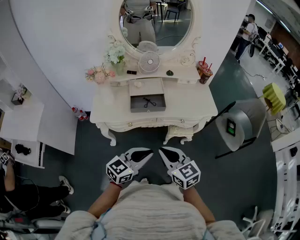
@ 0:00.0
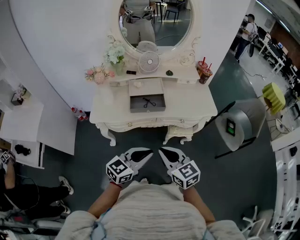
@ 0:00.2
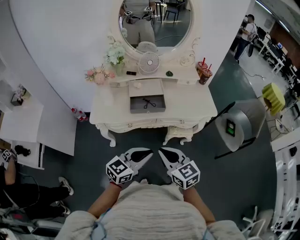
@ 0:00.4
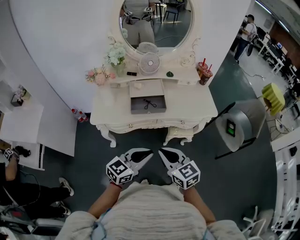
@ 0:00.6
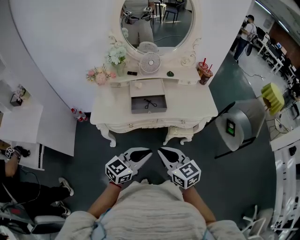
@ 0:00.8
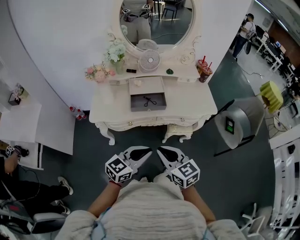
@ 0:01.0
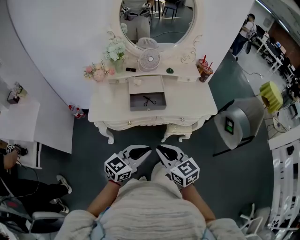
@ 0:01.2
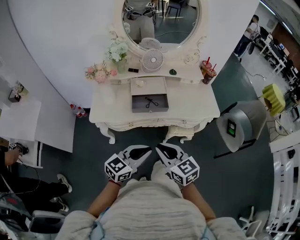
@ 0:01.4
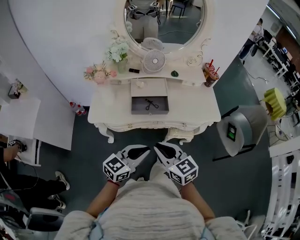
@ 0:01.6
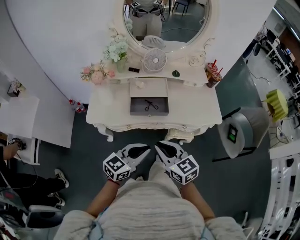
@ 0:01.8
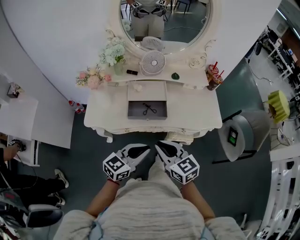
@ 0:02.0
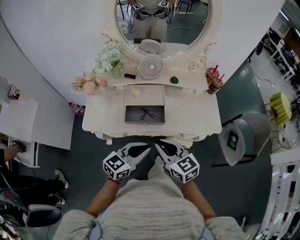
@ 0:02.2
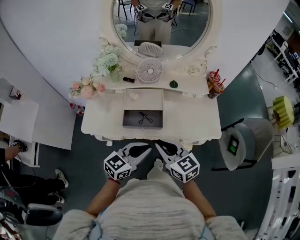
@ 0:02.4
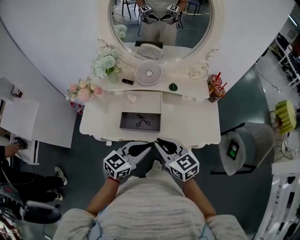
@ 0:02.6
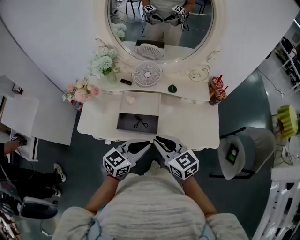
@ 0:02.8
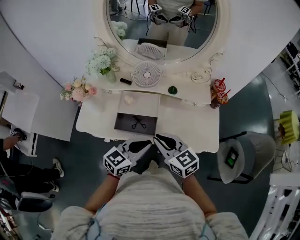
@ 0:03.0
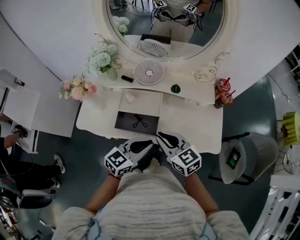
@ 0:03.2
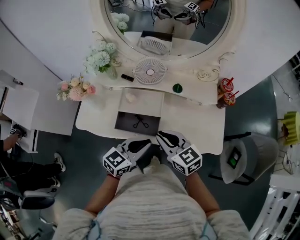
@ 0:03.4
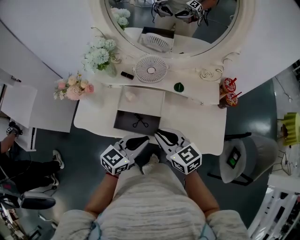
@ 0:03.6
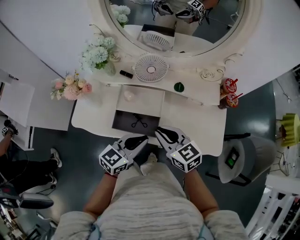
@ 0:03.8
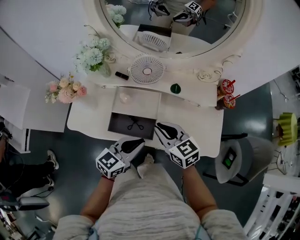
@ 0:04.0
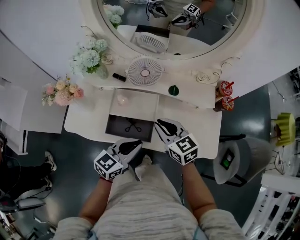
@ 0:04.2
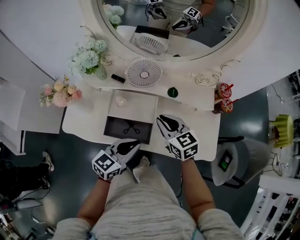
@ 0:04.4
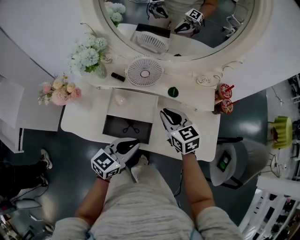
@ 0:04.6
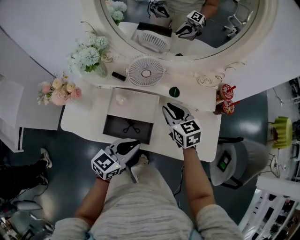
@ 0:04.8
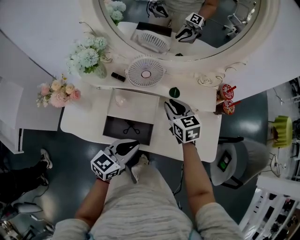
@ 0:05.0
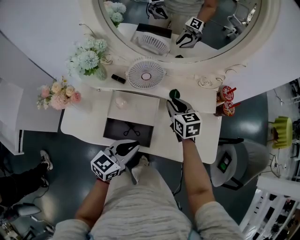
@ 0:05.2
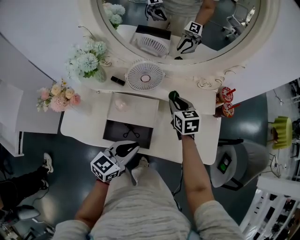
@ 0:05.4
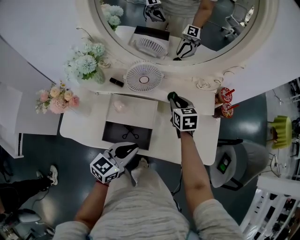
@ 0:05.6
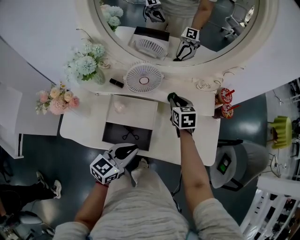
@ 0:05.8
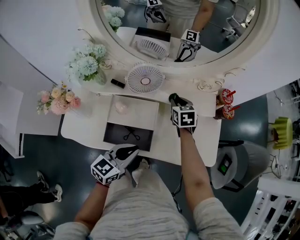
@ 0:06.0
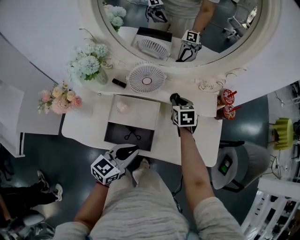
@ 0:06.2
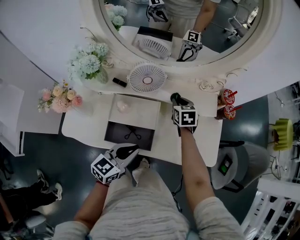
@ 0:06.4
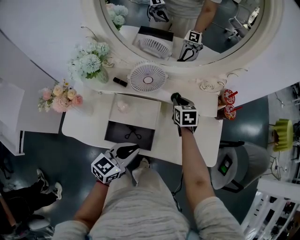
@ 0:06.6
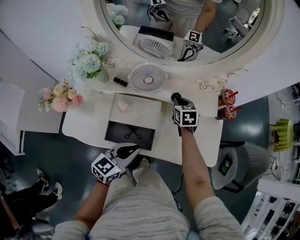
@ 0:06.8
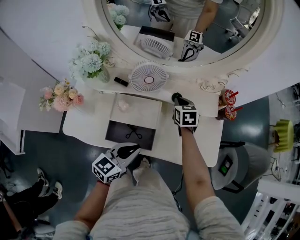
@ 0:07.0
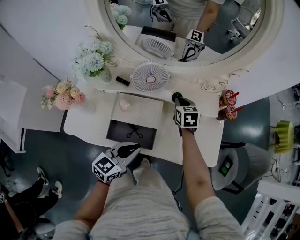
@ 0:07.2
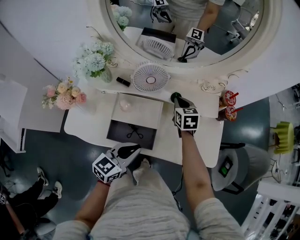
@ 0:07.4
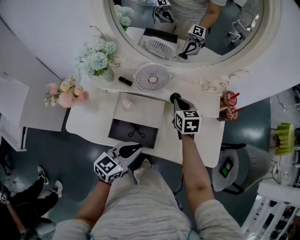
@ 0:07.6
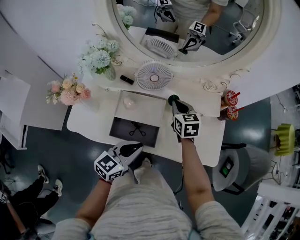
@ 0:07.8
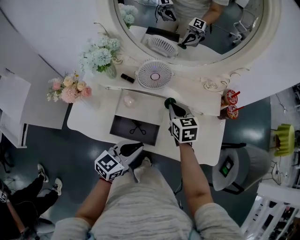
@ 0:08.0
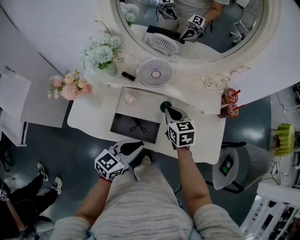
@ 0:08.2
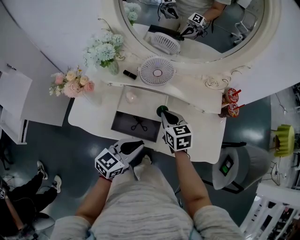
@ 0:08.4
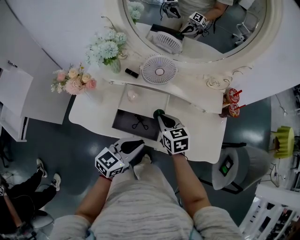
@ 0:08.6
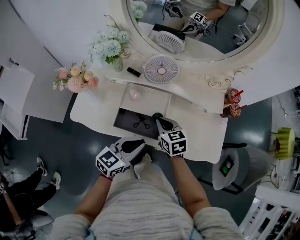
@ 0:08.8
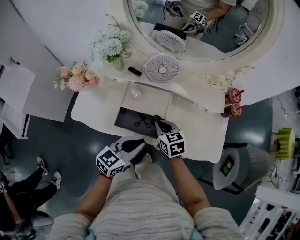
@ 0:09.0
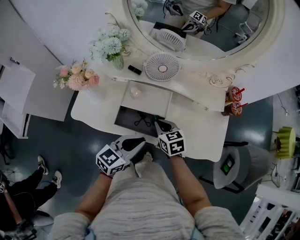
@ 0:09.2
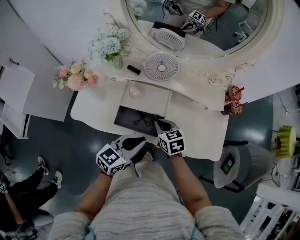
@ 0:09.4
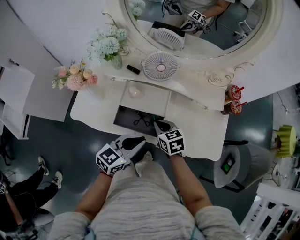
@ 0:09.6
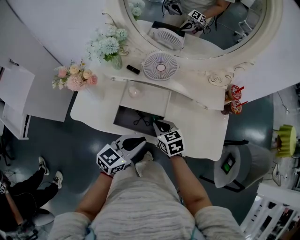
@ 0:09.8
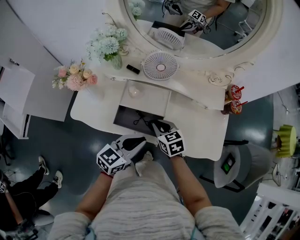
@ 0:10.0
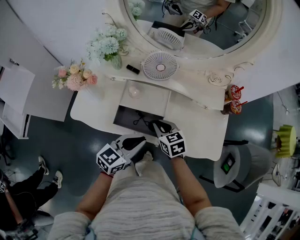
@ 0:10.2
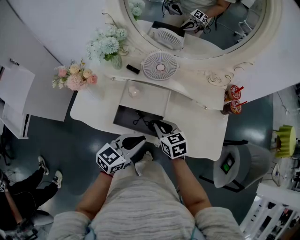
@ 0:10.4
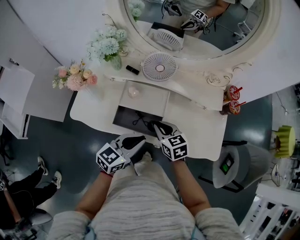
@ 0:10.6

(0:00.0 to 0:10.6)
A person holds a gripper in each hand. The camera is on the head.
0:00.0 - 0:01.6: Both grippers travel together forward, roughly 5 cm.
0:01.6 - 0:03.0: The grippers both shift forward and to the right by roughly 25 cm.
0:03.0 - 0:04.6: The right gripper shifts about 20 cm forward; the left gripper heads forward and downward, covering about 10 cm.
0:04.6 - 0:06.0: The right gripper travels forward and downward by about 15 cm, and turns by some 30 degrees.
0:06.0 - 0:07.6: The right gripper shifts by about 5 cm.
0:07.6 - 0:09.0: The right gripper shifts some 20 cm backward and to the left.
0:09.0 - 0:10.6: The grippers move only a little.

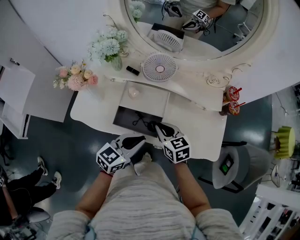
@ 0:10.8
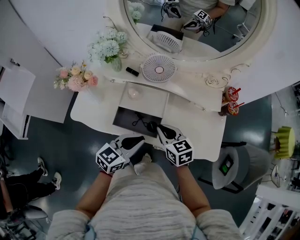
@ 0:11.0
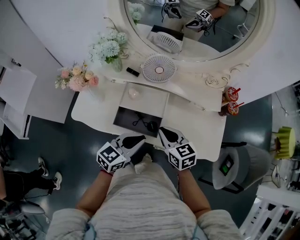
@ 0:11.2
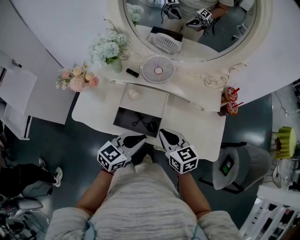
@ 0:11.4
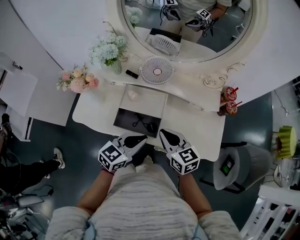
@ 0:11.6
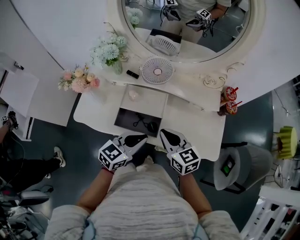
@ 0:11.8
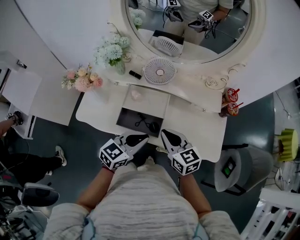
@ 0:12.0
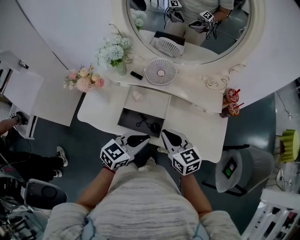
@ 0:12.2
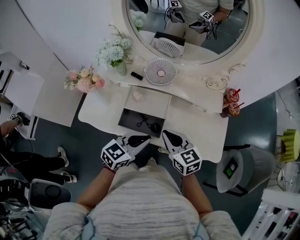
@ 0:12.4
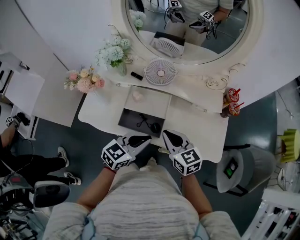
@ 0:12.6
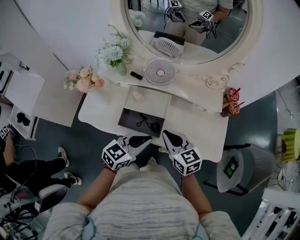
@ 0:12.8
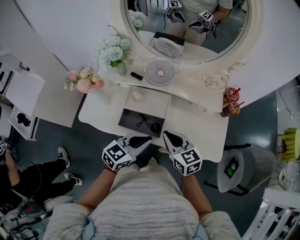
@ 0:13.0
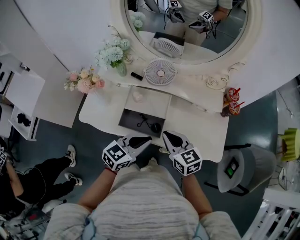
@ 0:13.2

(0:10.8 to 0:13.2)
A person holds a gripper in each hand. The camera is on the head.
0:10.8 - 0:12.0: The right gripper is displaced upward by some 10 cm.
0:12.0 - 0:13.2: Both grippers stay about where they are.

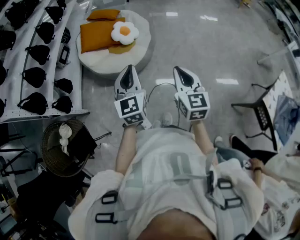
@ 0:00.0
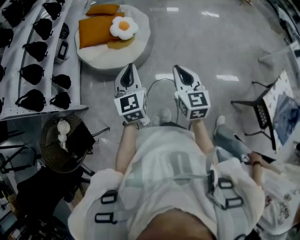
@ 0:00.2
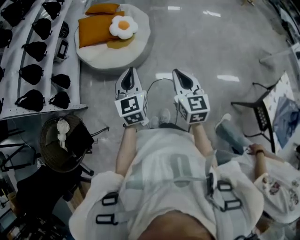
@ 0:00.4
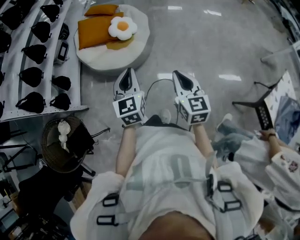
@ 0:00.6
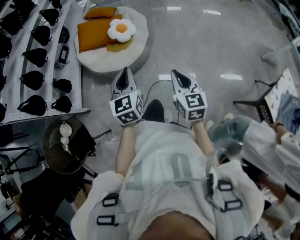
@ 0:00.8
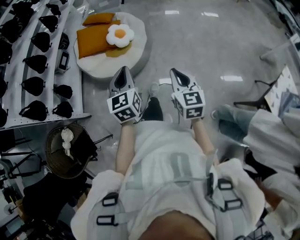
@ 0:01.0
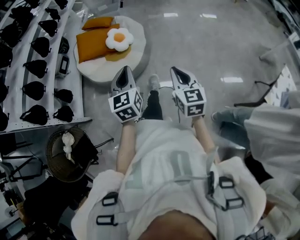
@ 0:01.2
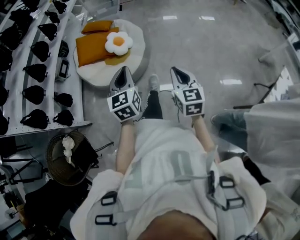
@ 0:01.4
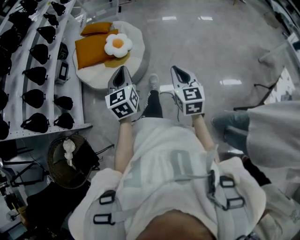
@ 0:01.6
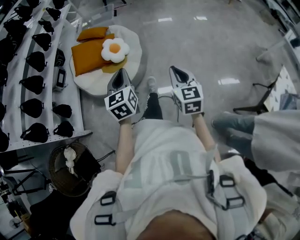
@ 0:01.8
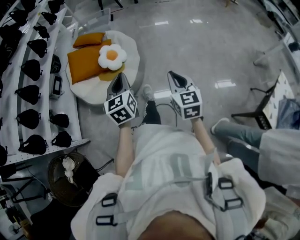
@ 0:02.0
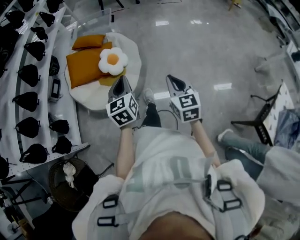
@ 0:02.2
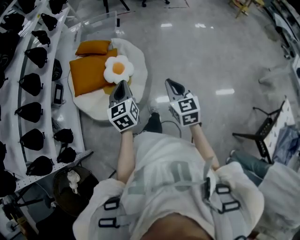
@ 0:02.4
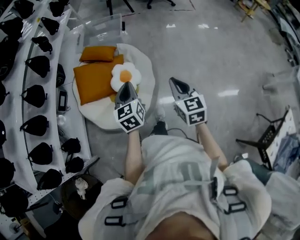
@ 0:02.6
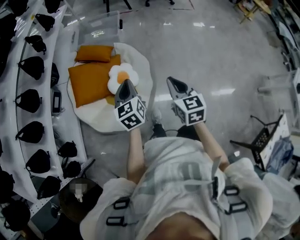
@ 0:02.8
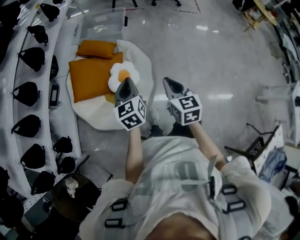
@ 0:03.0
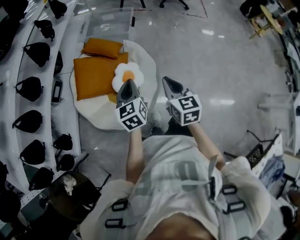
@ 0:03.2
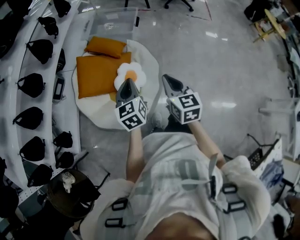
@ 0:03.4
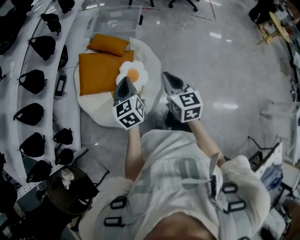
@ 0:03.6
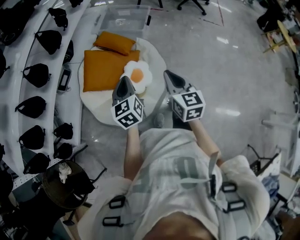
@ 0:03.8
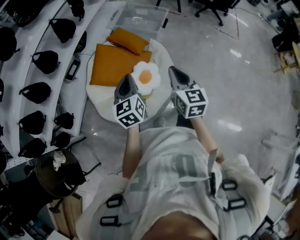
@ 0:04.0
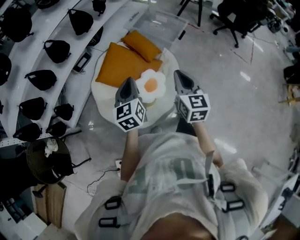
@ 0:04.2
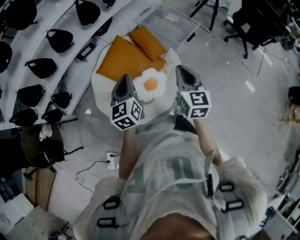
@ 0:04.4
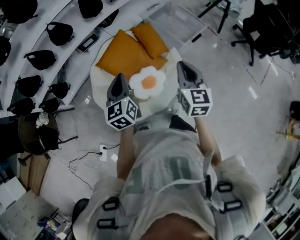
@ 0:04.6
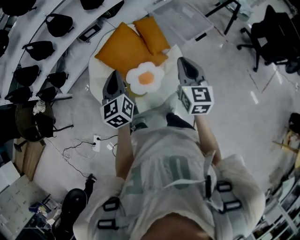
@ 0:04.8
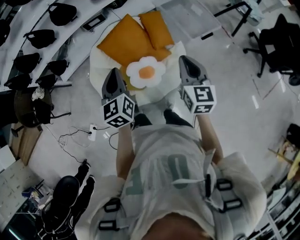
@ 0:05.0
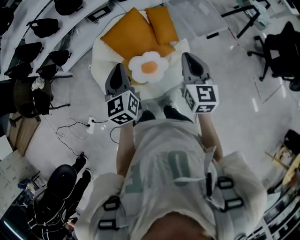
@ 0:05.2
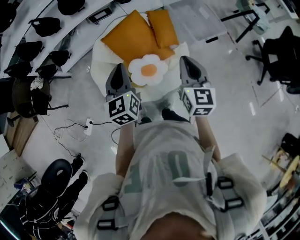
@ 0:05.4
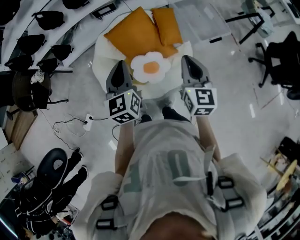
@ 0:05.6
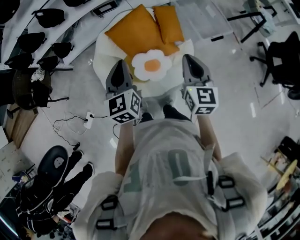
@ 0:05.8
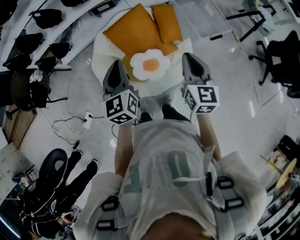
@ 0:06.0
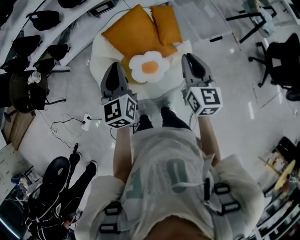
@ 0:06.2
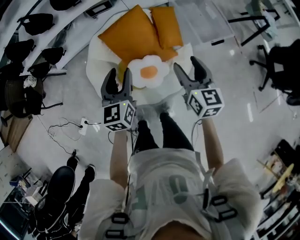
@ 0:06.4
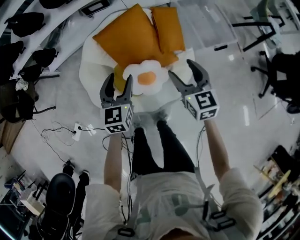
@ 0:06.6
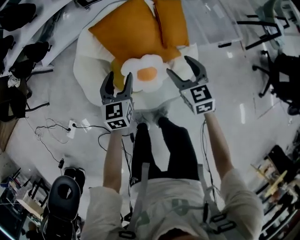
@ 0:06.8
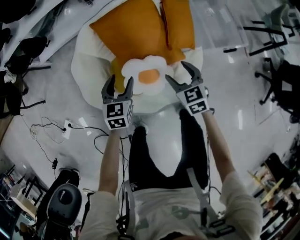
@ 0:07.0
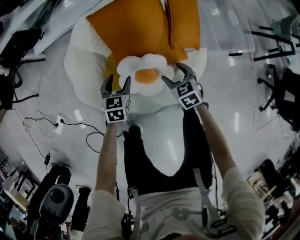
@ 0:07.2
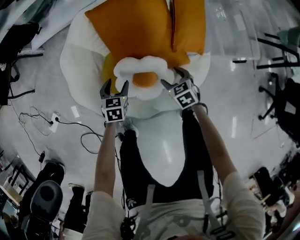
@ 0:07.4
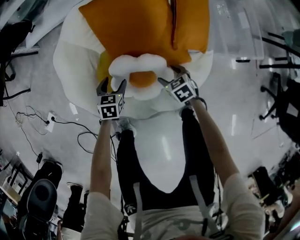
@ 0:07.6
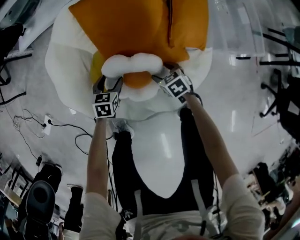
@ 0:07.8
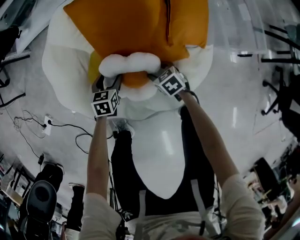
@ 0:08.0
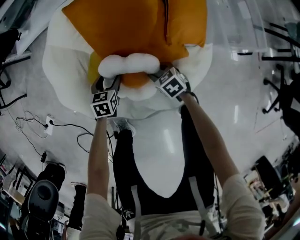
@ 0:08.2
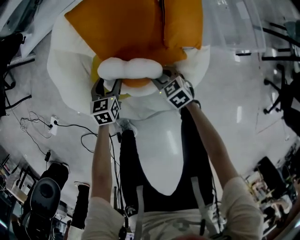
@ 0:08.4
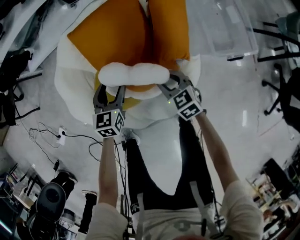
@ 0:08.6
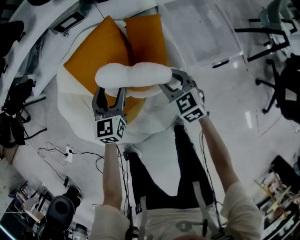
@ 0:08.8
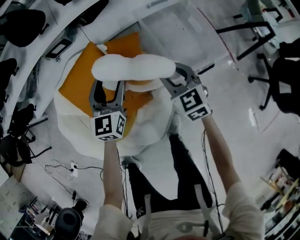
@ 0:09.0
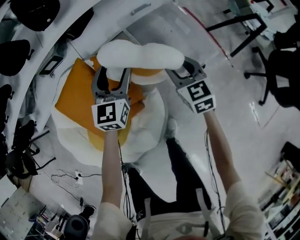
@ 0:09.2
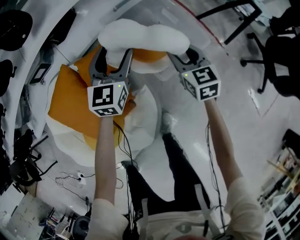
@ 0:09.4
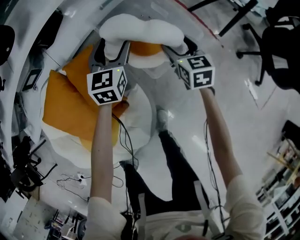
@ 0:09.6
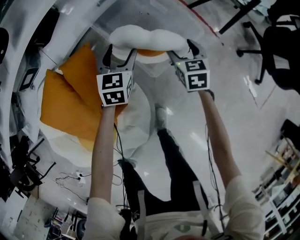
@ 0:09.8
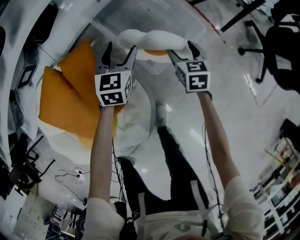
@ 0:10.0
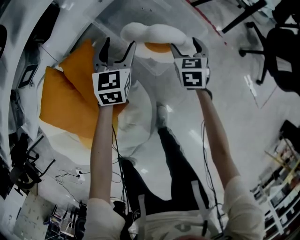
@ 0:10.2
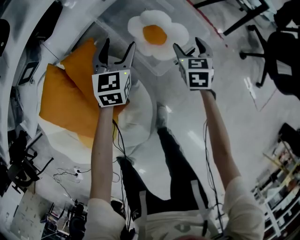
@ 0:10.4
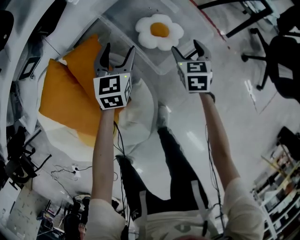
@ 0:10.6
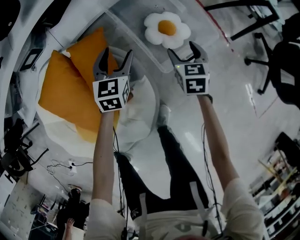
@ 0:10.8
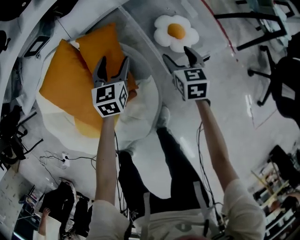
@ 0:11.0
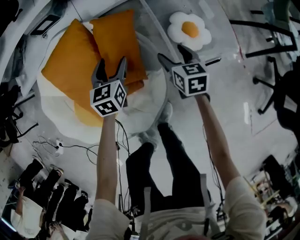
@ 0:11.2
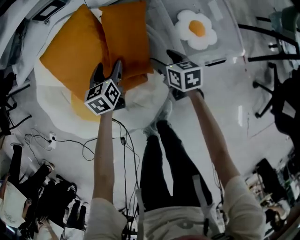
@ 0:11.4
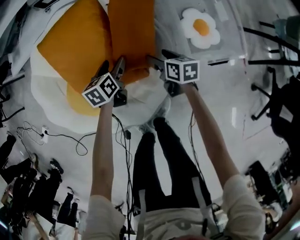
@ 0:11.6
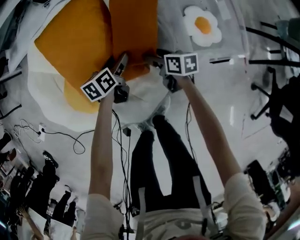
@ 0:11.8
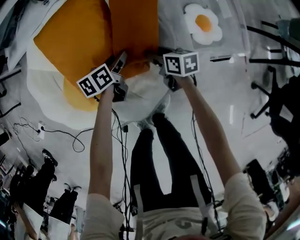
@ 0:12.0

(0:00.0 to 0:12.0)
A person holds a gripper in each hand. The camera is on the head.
0:00.0 - 0:01.6: The right gripper moves to the right and forward, some 15 cm, while the left gripper is displaced forward and to the right by roughly 15 cm.
0:01.6 - 0:03.0: The pair of grippers is taken forward, about 50 cm.
0:03.0 - 0:04.4: The right gripper moves some 25 cm, and changes its angle by some 30 degrees. Meanwhile the left gripper changes place by about 15 cm, and turns by about 40 degrees.
0:04.4 - 0:06.0: The left gripper changes its angle by some 30 degrees. Meanwhile the right gripper is displaced to the right and forward by approximately 10 cm, and changes its angle by about 20 degrees.
0:06.0 - 0:07.6: Both grippers travel together downward, approximately 60 cm. The right gripper tips its fingers downward by approximately 50 degrees, and opens its fingers, while the left gripper angles its fingers downward, by roughly 40 degrees, and opens up.
0:07.6 - 0:09.0: The left gripper moves approximately 50 cm, and angles its fingers upward, by some 40 degrees, while the right gripper ends up some 40 cm from where it was, points its fingers some 30 degrees further upward, and closes.
0:09.0 - 0:10.4: The right gripper moves roughly 35 cm, rotates roughly 40 degrees, and opens; the left gripper moves approximately 30 cm, and rotates about 20 degrees.
0:10.4 - 0:12.0: The right gripper changes place by approximately 40 cm, swivels approximately 60 degrees, and closes its fingers; the left gripper ends up some 35 cm from where it was, and twists some 60 degrees counterclockwise, seen from behind.
